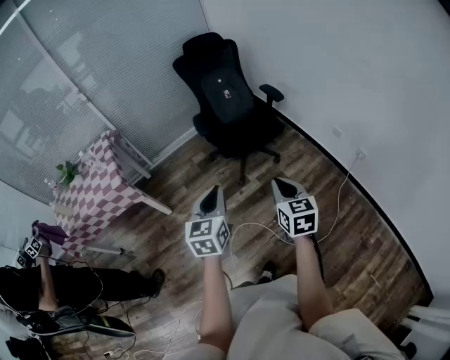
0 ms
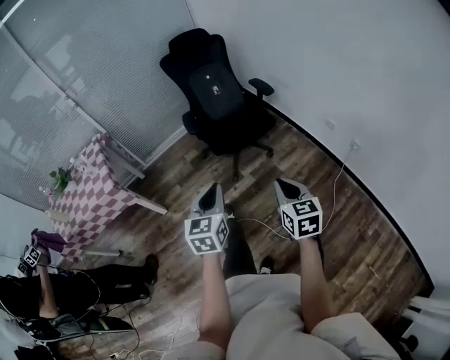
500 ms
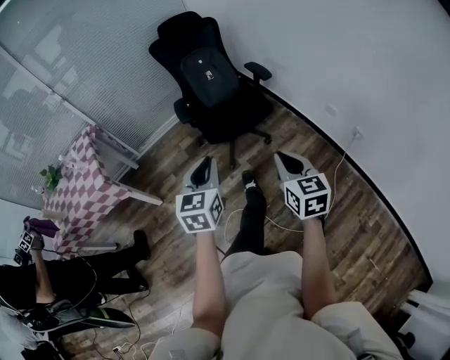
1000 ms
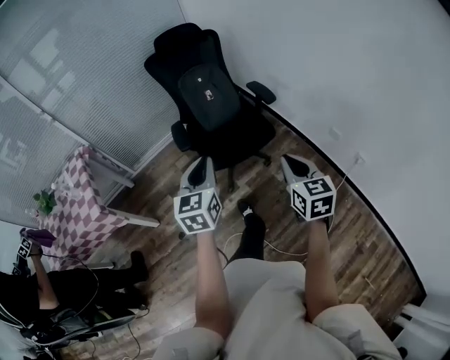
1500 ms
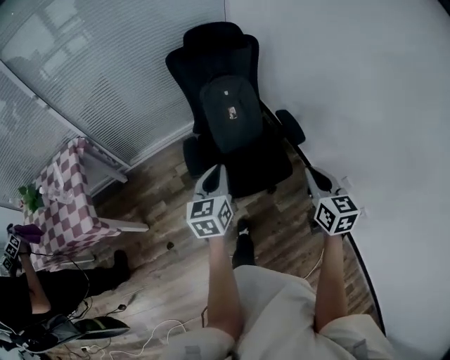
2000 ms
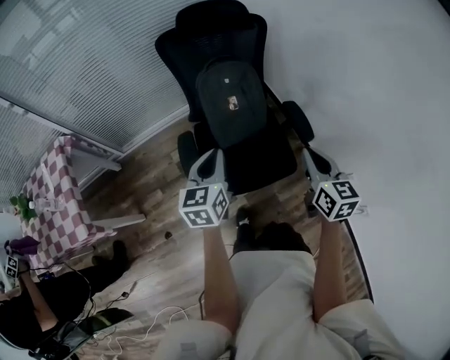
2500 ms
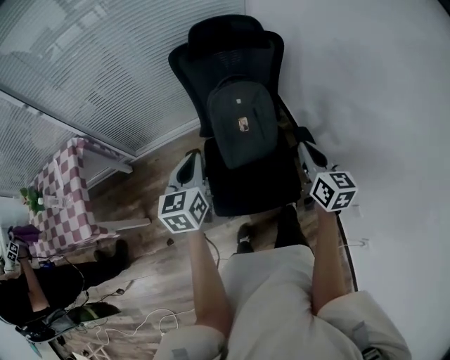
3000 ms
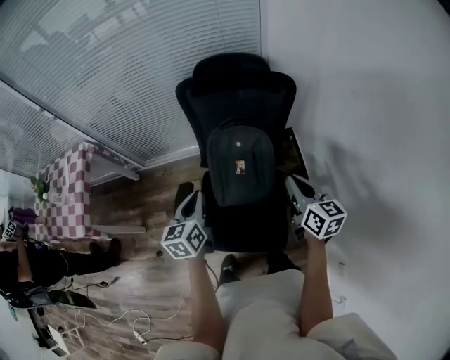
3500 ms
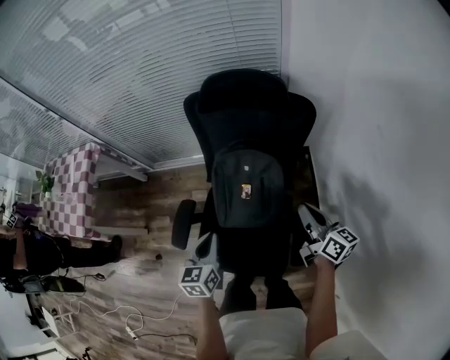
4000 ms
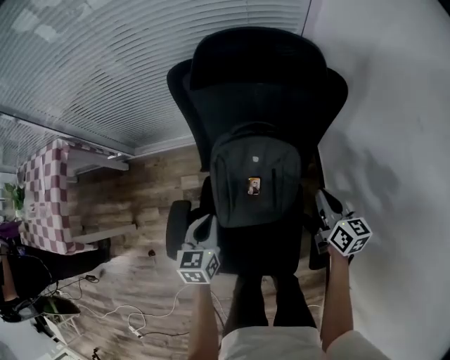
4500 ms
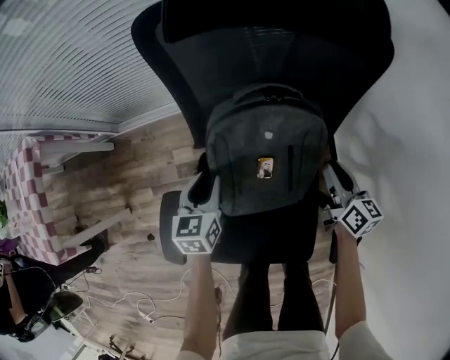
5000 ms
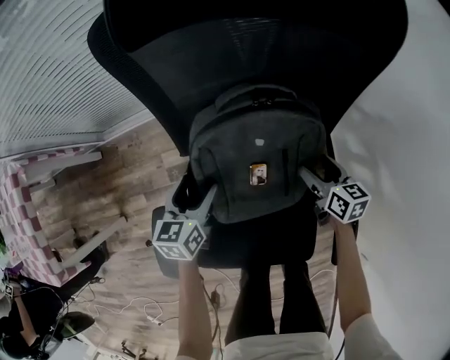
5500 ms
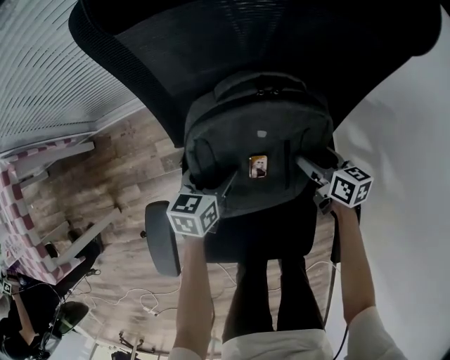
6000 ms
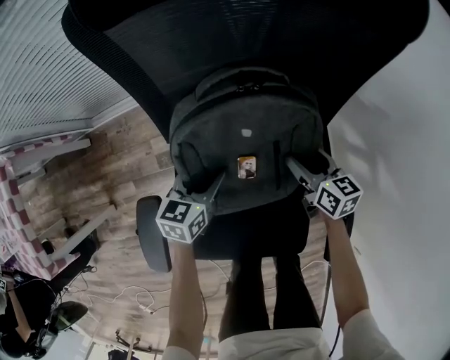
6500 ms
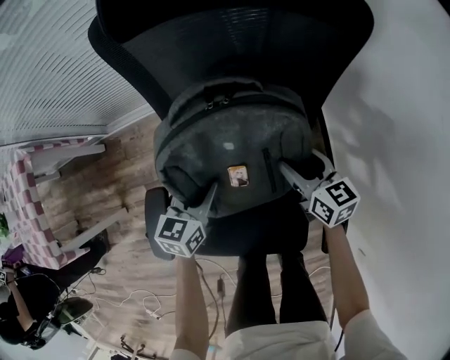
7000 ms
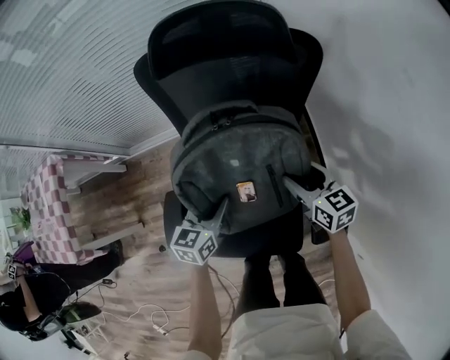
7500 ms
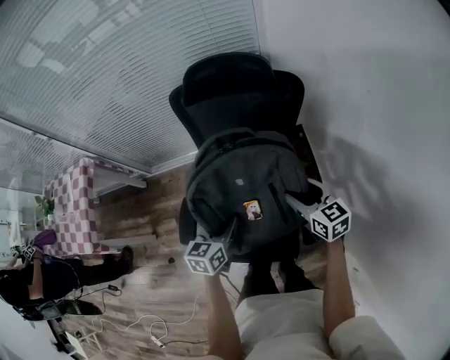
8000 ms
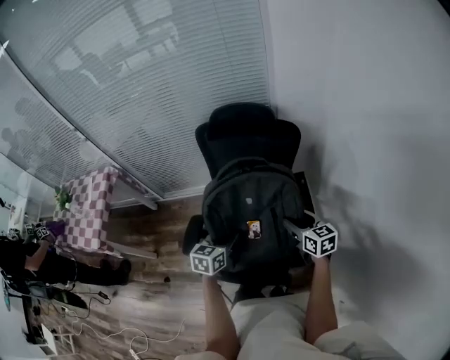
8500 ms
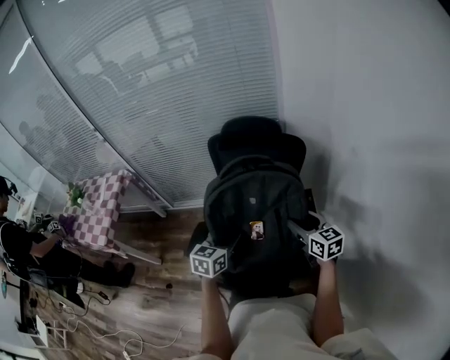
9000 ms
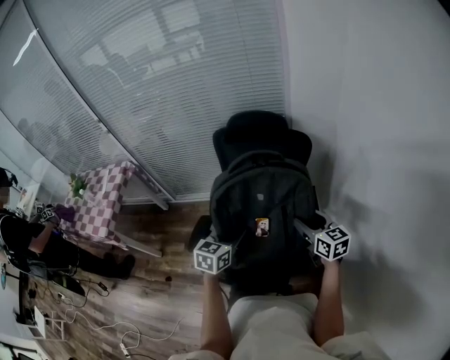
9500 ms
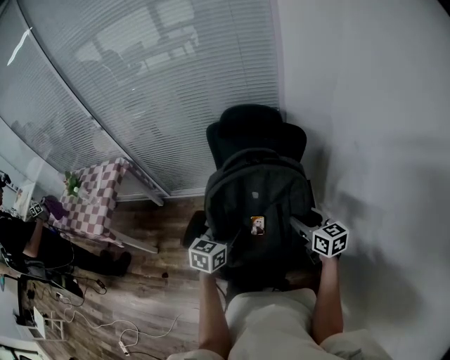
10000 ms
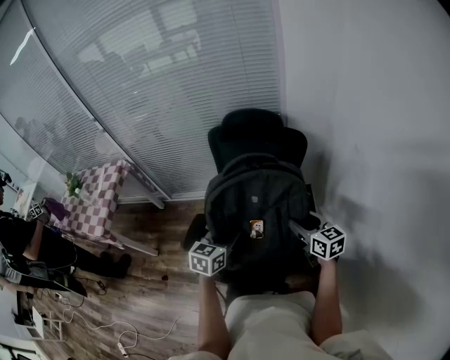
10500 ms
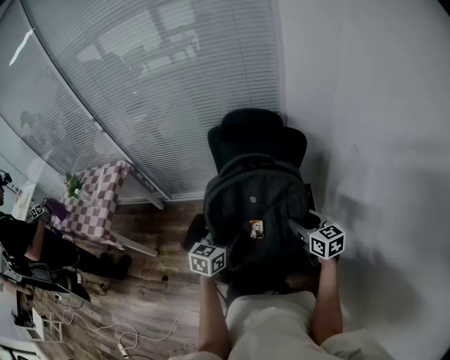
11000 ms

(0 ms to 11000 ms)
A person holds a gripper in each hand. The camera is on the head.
0 ms - 2000 ms: Both grippers are carried forward, some 50 cm.
2000 ms - 3500 ms: The right gripper changes place by some 40 cm, and turns by roughly 30 degrees. Meanwhile the left gripper shifts by some 30 cm, and turns by approximately 20 degrees.
3500 ms - 5500 ms: The two grippers go approximately 40 cm downward and forward. The right gripper turns by about 20 degrees, and opens up. Meanwhile the left gripper opens up.
5500 ms - 7500 ms: The right gripper goes approximately 20 cm upward, and changes its angle by roughly 20 degrees, while the left gripper goes about 20 cm upward, backward and to the right, and closes up.
7500 ms - 9000 ms: Both grippers move upward and backward, roughly 25 cm.
9000 ms - 11000 ms: The grippers stay close to where they were, moving slightly.

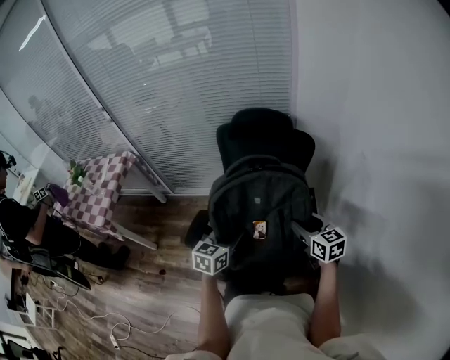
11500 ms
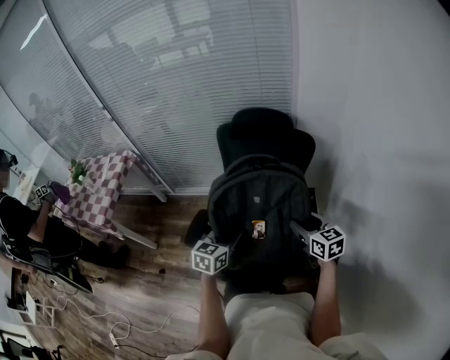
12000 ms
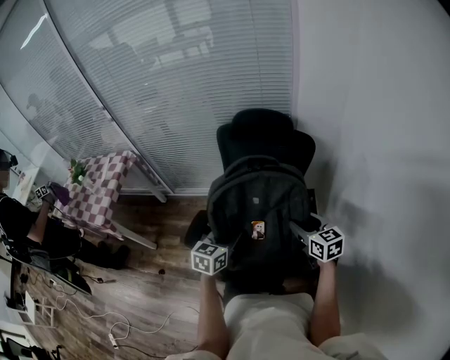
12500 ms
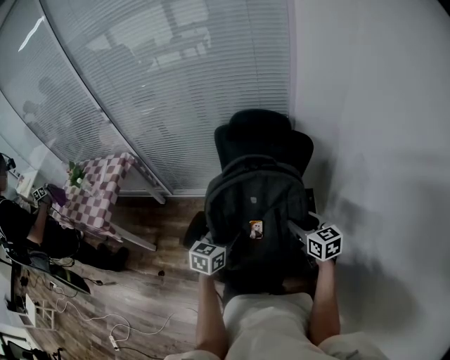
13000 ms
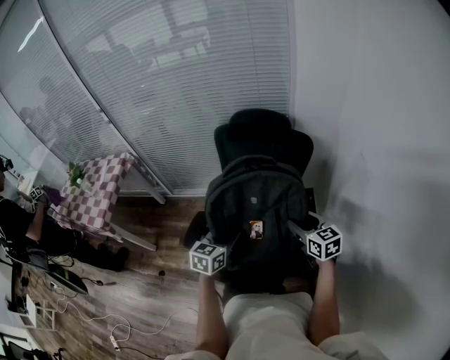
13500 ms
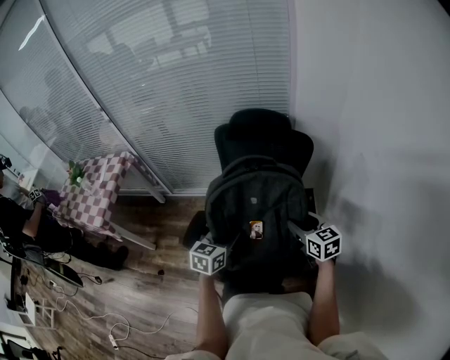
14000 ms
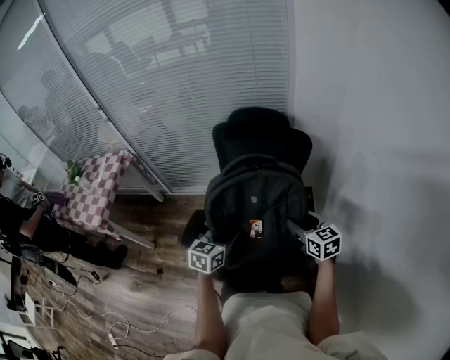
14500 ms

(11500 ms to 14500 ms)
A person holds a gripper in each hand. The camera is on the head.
11500 ms - 13000 ms: Neither gripper changes place.
13000 ms - 14500 ms: Both grippers stay about where they are.

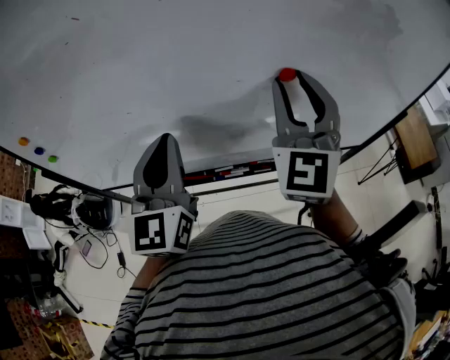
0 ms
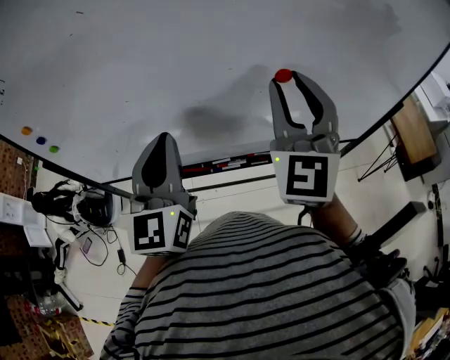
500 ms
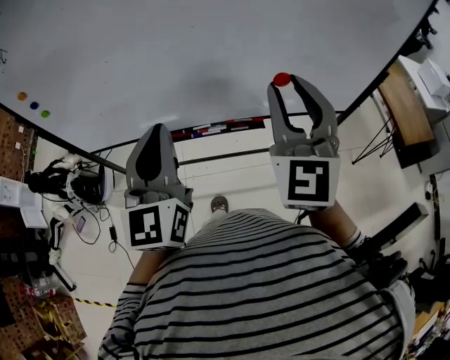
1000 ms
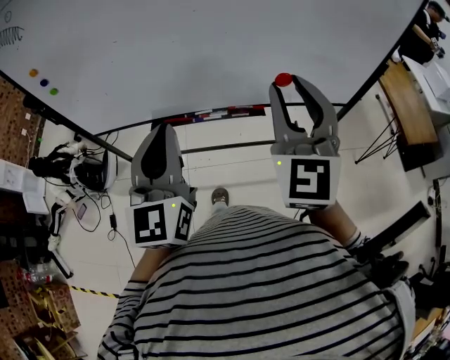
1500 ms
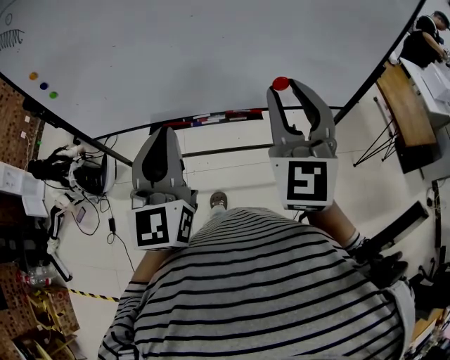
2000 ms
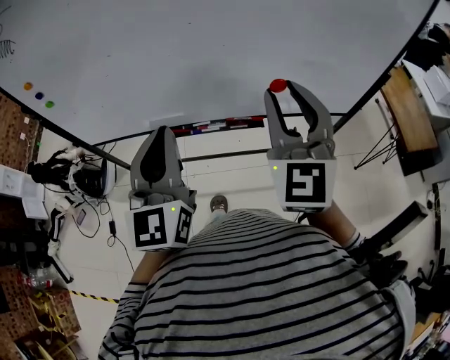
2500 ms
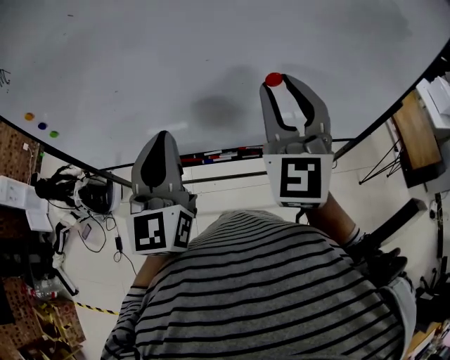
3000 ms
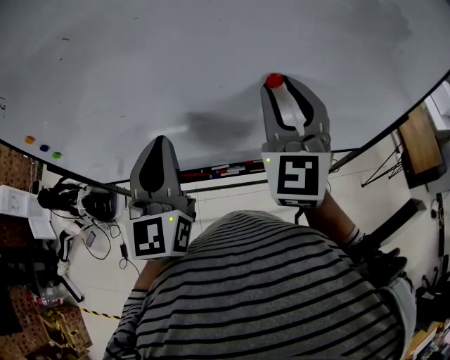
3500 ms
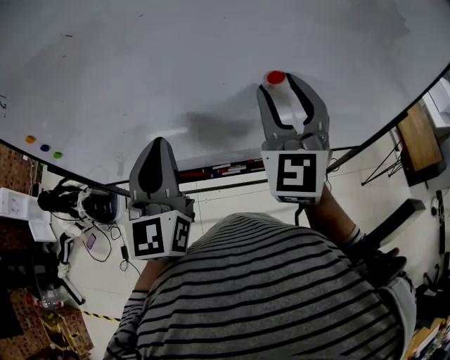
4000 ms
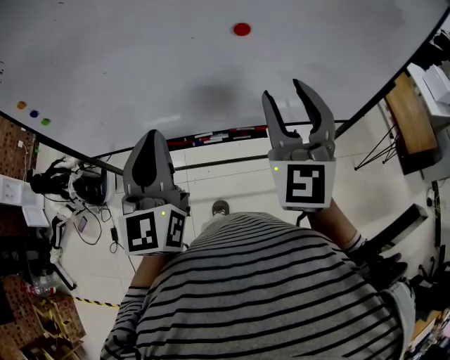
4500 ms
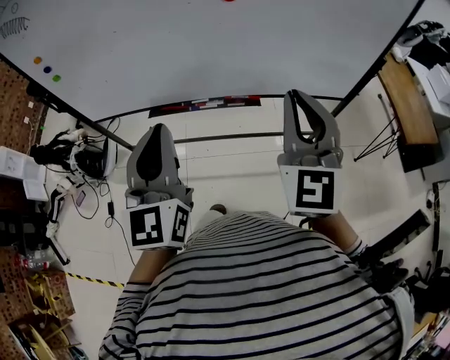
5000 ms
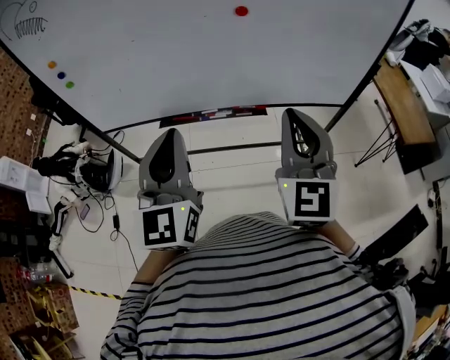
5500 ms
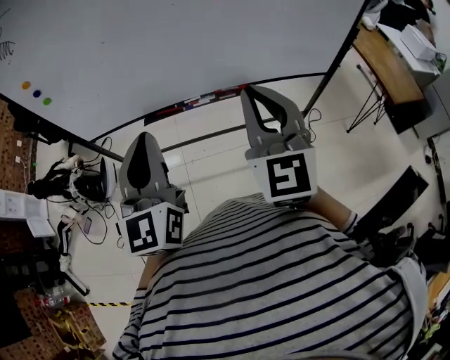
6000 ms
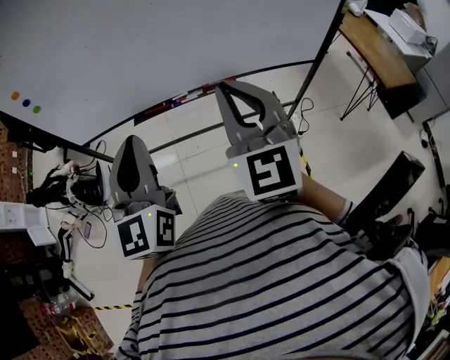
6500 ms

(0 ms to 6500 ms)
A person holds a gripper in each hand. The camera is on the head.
0 ms - 2000 ms: The left gripper moves backward and to the right, roughly 20 cm; the right gripper is displaced backward by about 20 cm.
2000 ms - 4500 ms: The grippers both shift forward by roughly 10 cm.
4500 ms - 6500 ms: Both grippers move backward, some 15 cm. The right gripper closes.

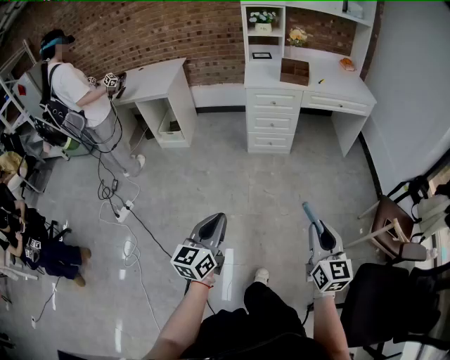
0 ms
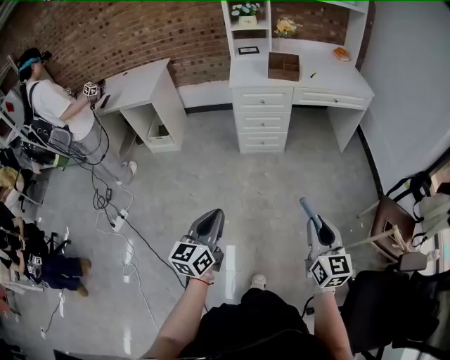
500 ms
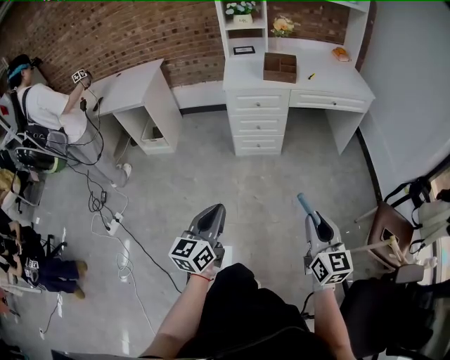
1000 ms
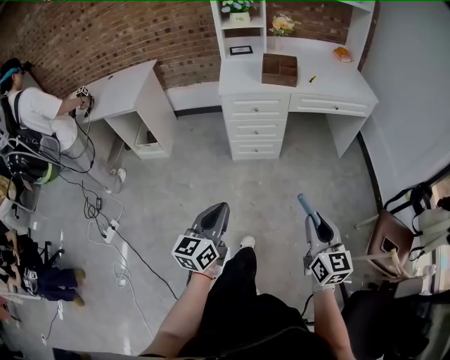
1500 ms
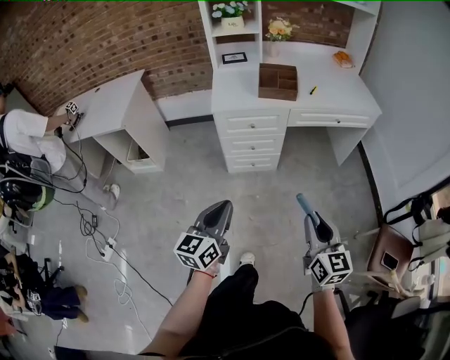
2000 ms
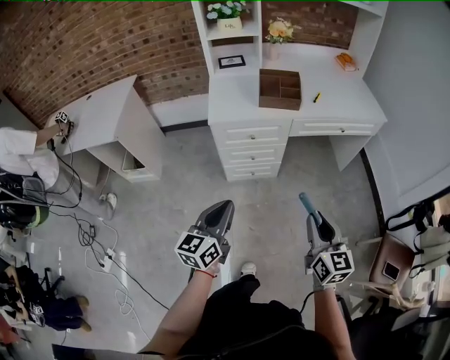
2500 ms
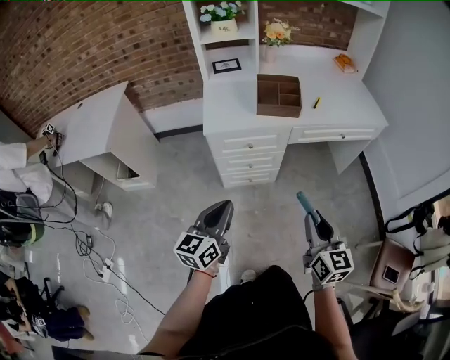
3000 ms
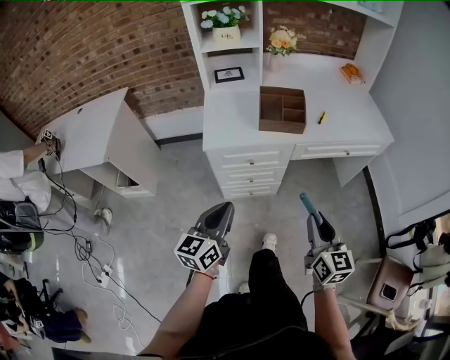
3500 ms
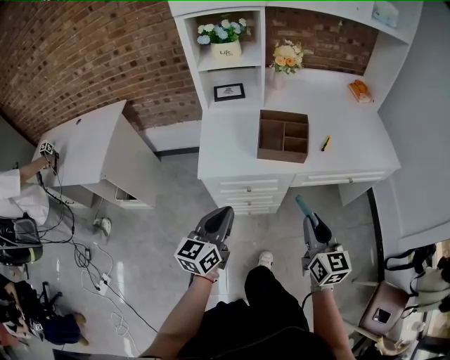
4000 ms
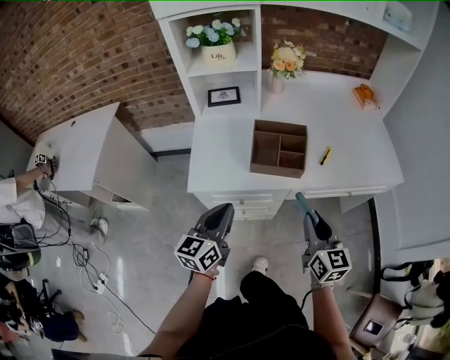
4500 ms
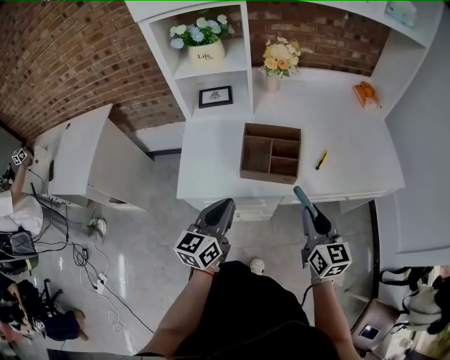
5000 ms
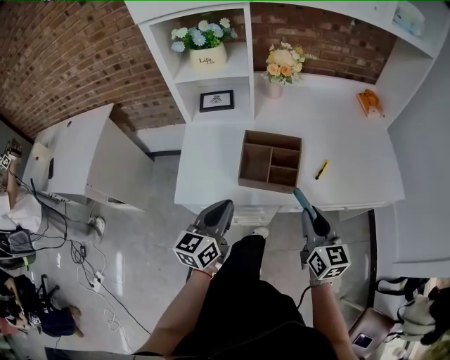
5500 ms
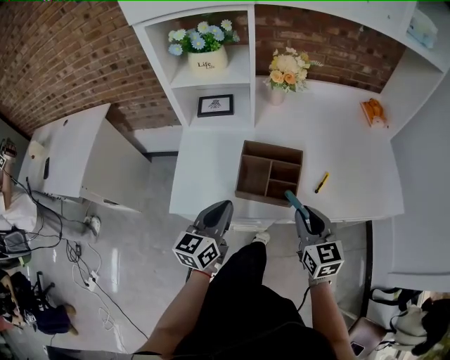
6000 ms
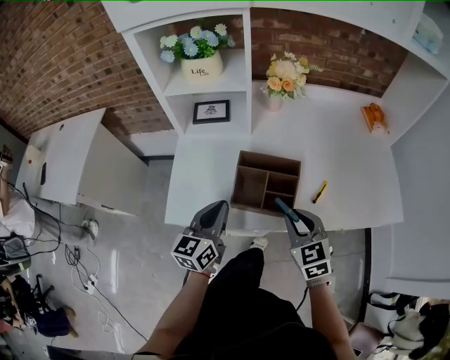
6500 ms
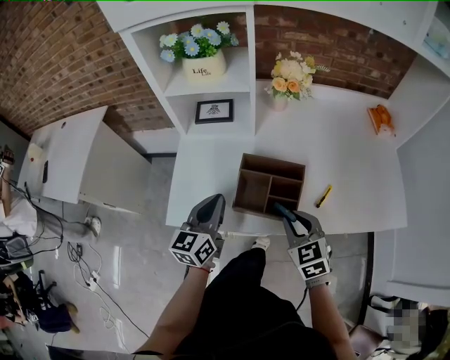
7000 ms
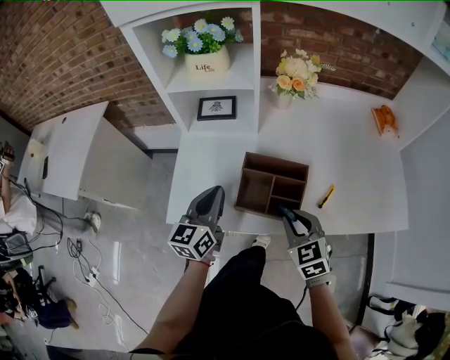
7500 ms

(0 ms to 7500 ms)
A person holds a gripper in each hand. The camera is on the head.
0 ms - 2000 ms: Both grippers travel together forward, some 40 cm.
2000 ms - 4000 ms: Both grippers move forward, about 35 cm.
4000 ms - 5500 ms: The two grippers go roughly 15 cm forward.
5500 ms - 7500 ms: The left gripper heads forward, covering some 15 cm; the right gripper shifts about 15 cm forward, to the left and downward, and rotates approximately 40 degrees.
